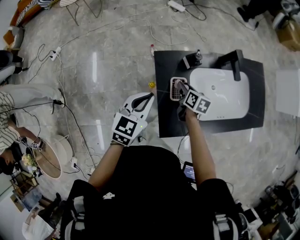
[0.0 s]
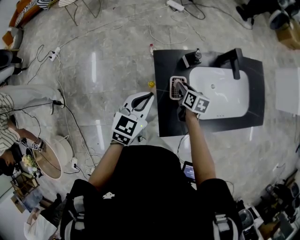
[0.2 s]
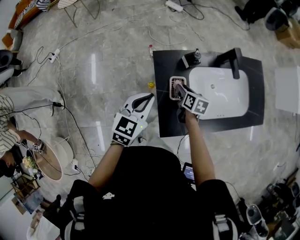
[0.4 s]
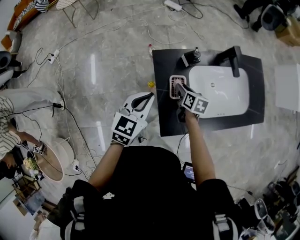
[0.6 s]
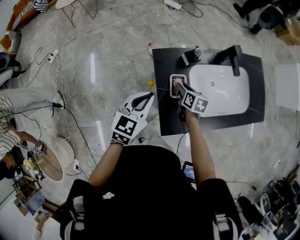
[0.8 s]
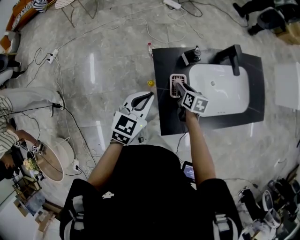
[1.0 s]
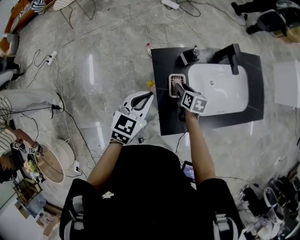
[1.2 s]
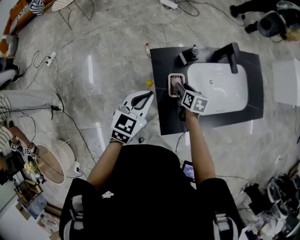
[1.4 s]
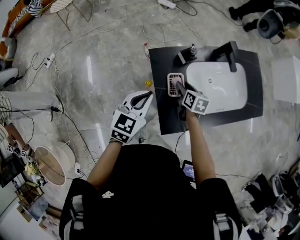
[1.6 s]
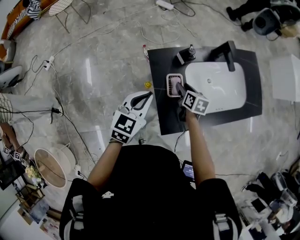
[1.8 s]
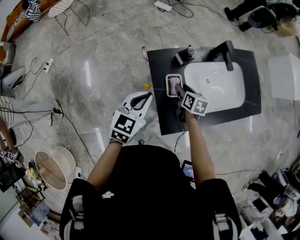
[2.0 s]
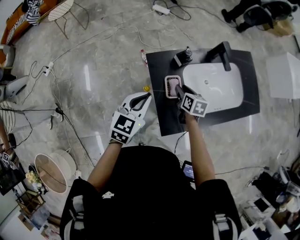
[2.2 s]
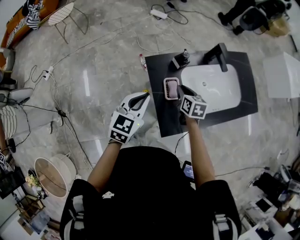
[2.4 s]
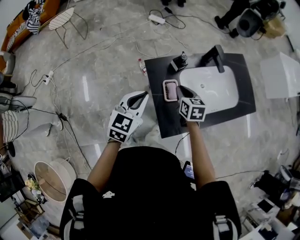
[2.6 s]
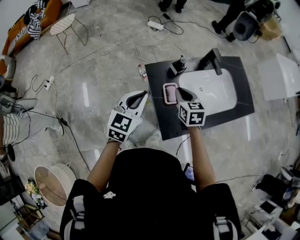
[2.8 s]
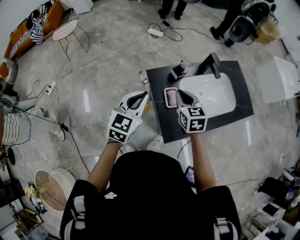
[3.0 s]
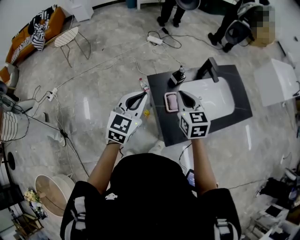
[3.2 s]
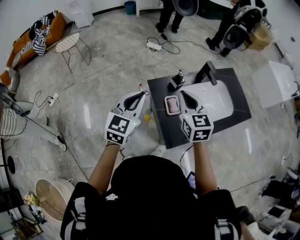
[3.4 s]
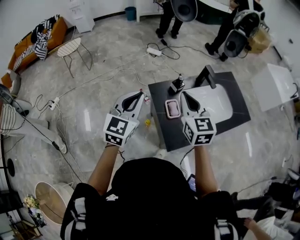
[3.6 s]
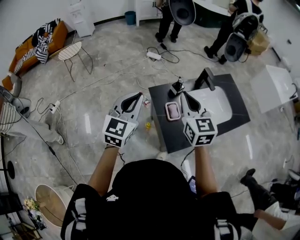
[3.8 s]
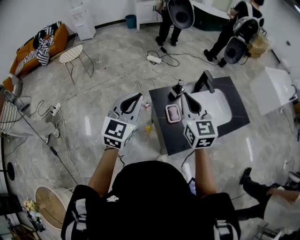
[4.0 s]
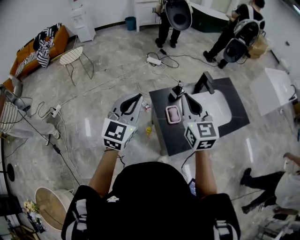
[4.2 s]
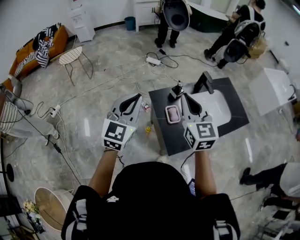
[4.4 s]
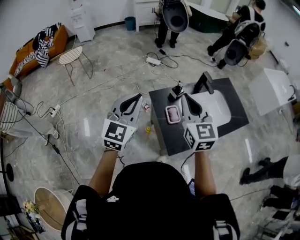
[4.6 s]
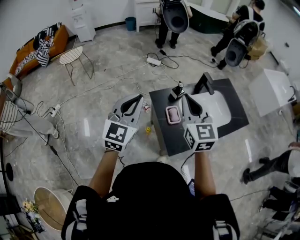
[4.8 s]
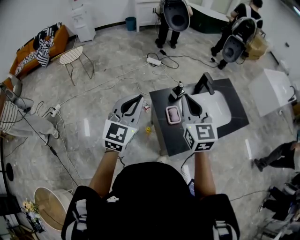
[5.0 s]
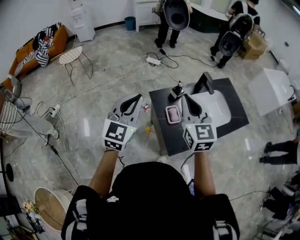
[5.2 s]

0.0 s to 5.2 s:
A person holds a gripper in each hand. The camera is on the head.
0.0 to 1.8 s: There are only small adjustments of the grippers.
1.8 to 3.4 s: The right gripper is displaced upward by about 30 cm, changes its angle by roughly 40 degrees, and closes its fingers, while the left gripper heads upward, covering about 15 cm.
3.4 to 5.2 s: Both grippers move upward, approximately 10 cm.

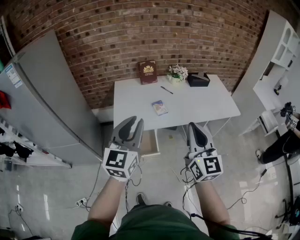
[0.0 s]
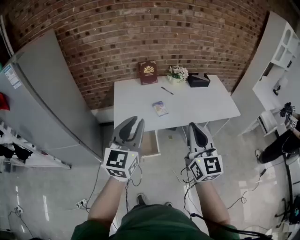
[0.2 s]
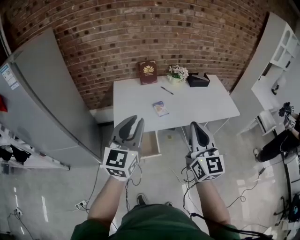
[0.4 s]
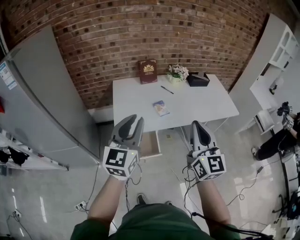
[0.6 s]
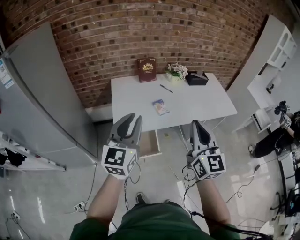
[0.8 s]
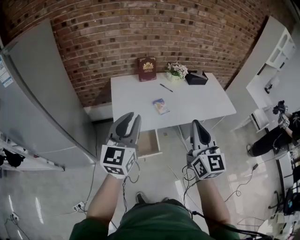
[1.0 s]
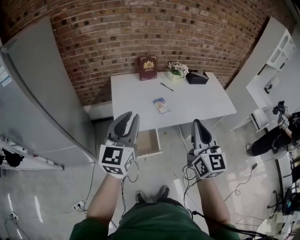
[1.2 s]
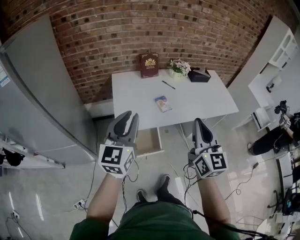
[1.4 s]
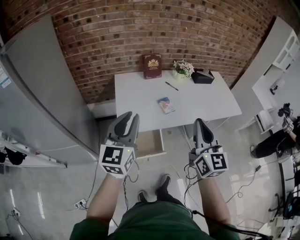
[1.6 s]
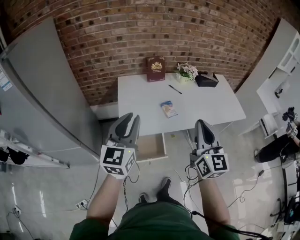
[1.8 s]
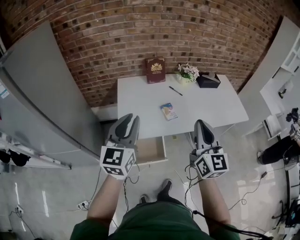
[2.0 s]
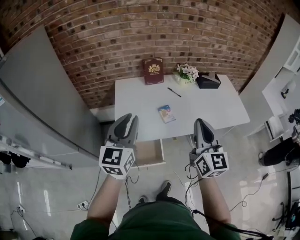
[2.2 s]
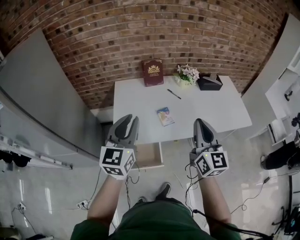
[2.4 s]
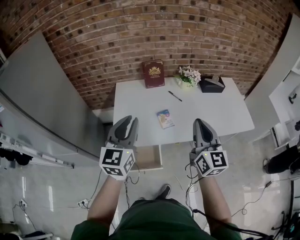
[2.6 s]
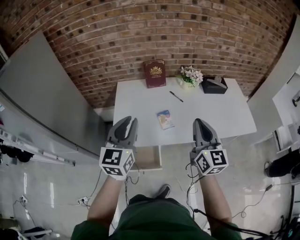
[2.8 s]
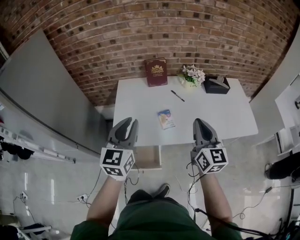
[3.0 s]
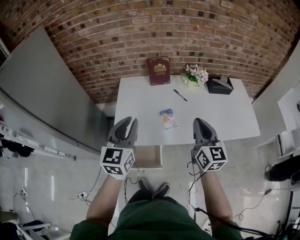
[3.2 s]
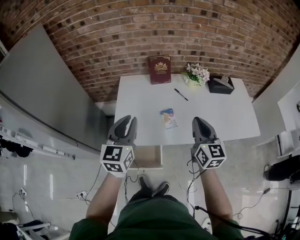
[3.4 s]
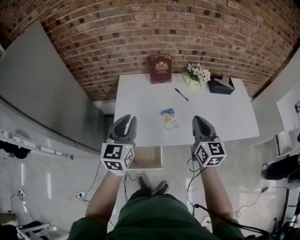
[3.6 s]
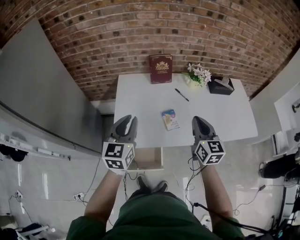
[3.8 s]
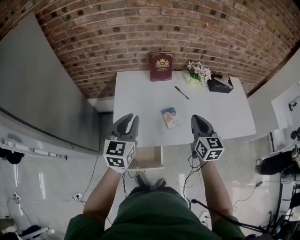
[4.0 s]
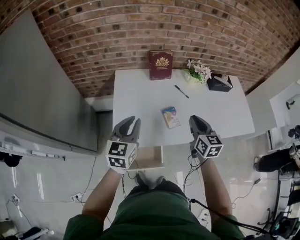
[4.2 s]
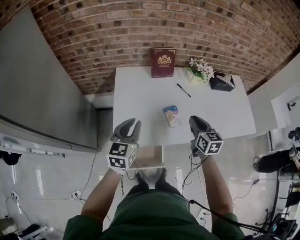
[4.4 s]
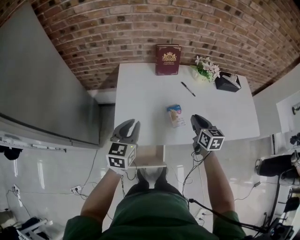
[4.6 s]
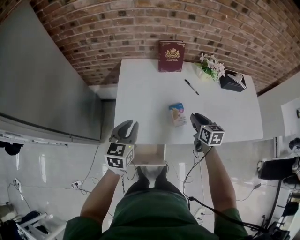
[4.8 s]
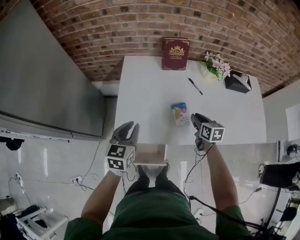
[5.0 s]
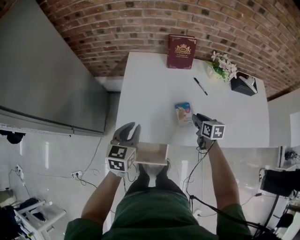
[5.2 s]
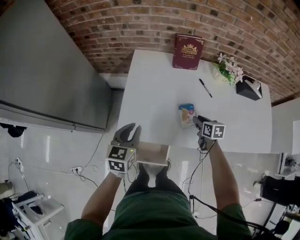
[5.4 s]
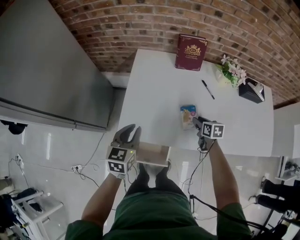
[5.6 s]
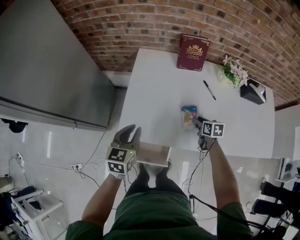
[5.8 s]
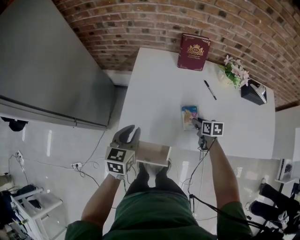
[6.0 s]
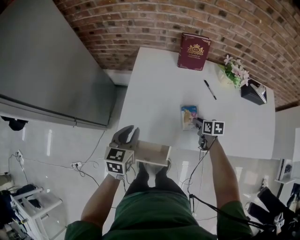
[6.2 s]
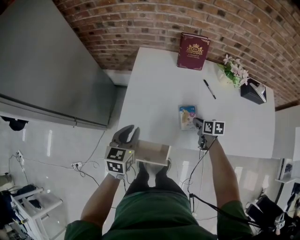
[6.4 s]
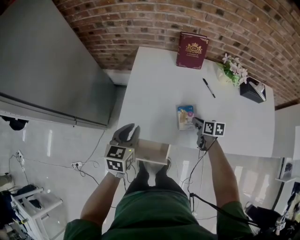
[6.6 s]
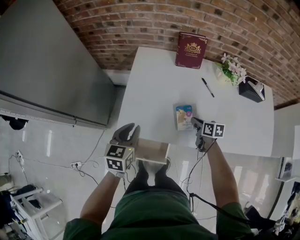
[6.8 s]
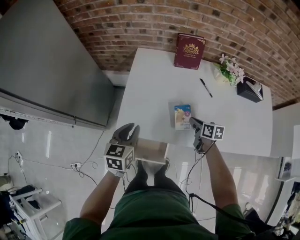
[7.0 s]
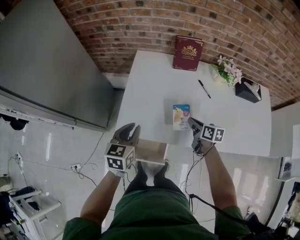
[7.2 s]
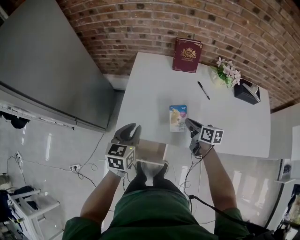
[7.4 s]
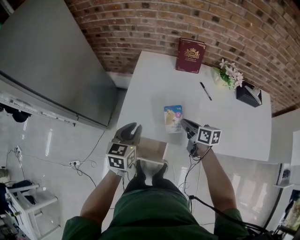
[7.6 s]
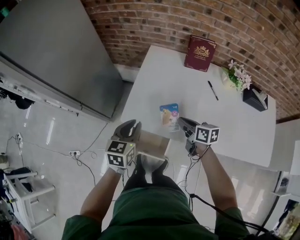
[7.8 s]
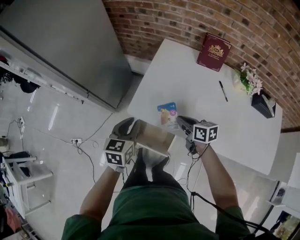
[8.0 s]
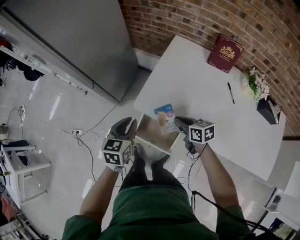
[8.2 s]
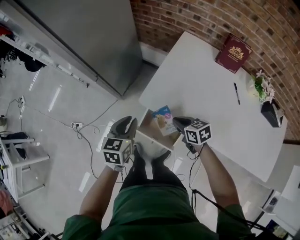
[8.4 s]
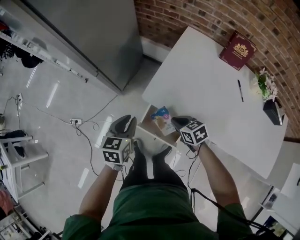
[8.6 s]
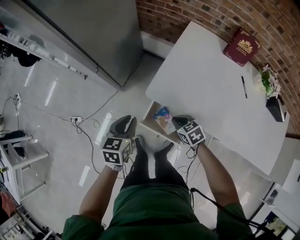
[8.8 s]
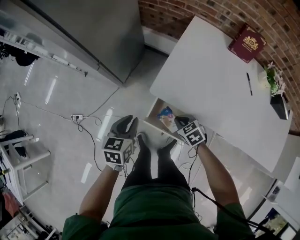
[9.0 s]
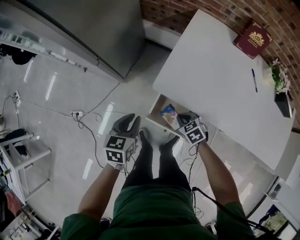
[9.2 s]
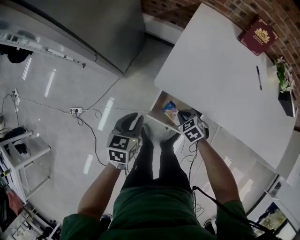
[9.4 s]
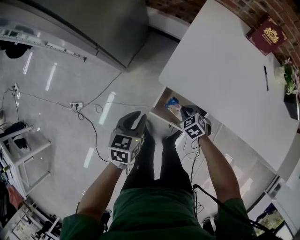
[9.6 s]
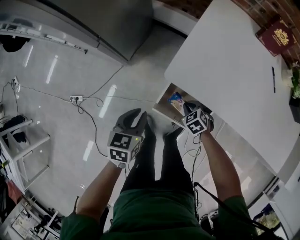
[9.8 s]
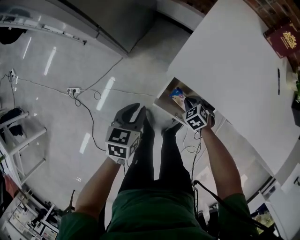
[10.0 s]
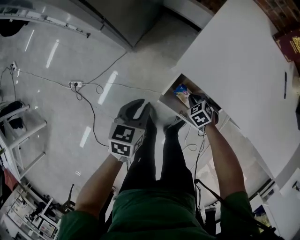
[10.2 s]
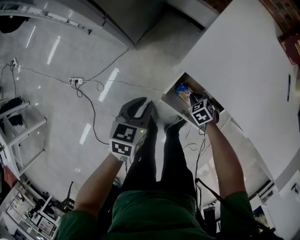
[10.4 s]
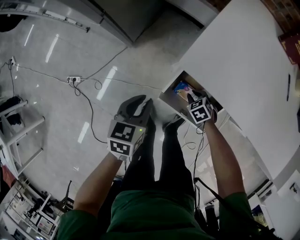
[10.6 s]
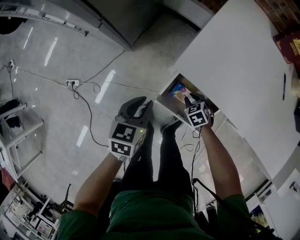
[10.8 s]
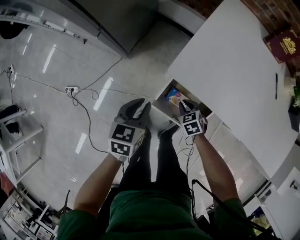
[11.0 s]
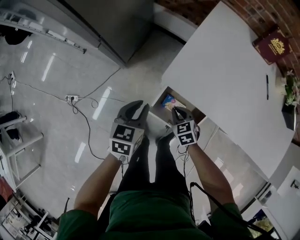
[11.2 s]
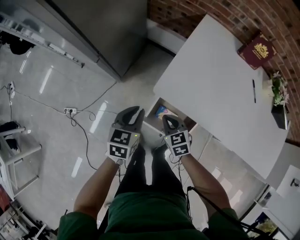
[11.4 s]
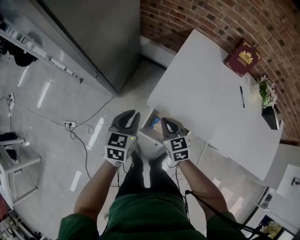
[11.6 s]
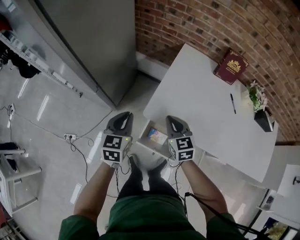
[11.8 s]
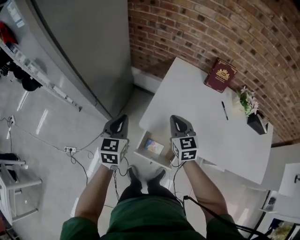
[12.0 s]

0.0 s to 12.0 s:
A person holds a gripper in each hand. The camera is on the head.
0.0 to 1.6 s: Both grippers move to the left and forward, some 10 cm.
1.6 to 3.0 s: The grippers both shift forward and to the right by about 20 cm.
3.0 to 4.4 s: The left gripper heads downward, to the left and forward, covering some 20 cm. Meanwhile the right gripper heads downward, forward and to the left, covering roughly 20 cm, and rotates roughly 30 degrees.
4.4 to 6.0 s: The right gripper moves downward, roughly 25 cm, rotates about 40 degrees, and opens up, while the left gripper goes some 10 cm downward.
6.0 to 7.6 s: The left gripper shifts by some 5 cm. The right gripper goes about 15 cm upward and to the left, swivels roughly 30 degrees, and closes up.
7.6 to 9.0 s: Both grippers move to the left and downward, about 25 cm. The right gripper tilts its fingers roughly 30 degrees downward. The left gripper swivels roughly 20 degrees.
9.0 to 10.4 s: The left gripper travels downward by roughly 15 cm. The right gripper heads downward, covering roughly 20 cm.
10.4 to 12.0 s: The right gripper shifts roughly 40 cm upward, and points its fingers approximately 50 degrees further upward. Meanwhile the left gripper is displaced upward and forward by approximately 30 cm, and rotates approximately 30 degrees.

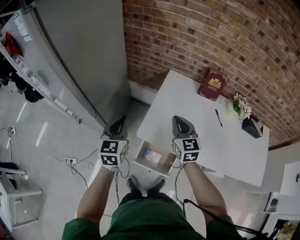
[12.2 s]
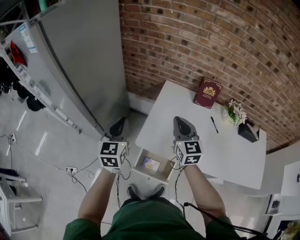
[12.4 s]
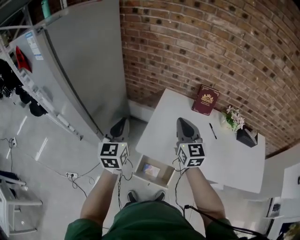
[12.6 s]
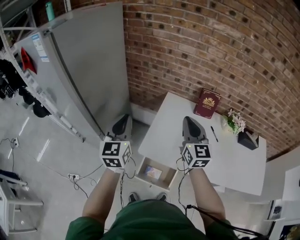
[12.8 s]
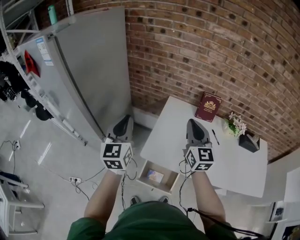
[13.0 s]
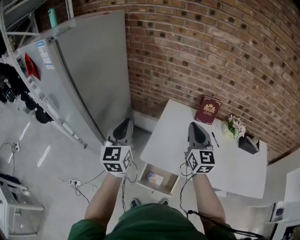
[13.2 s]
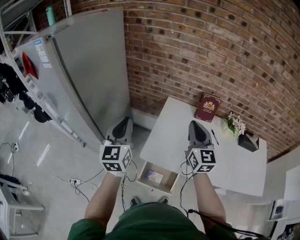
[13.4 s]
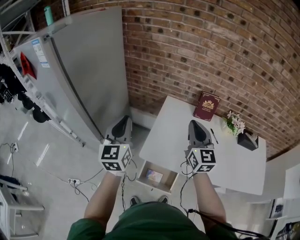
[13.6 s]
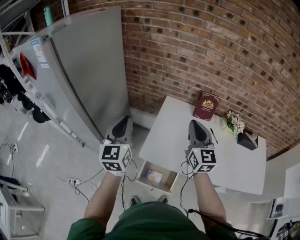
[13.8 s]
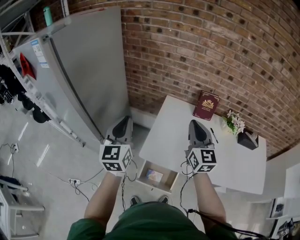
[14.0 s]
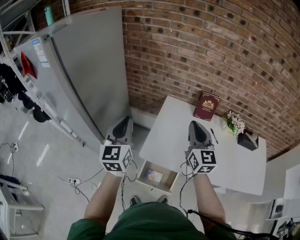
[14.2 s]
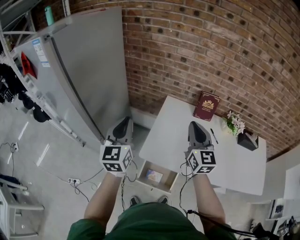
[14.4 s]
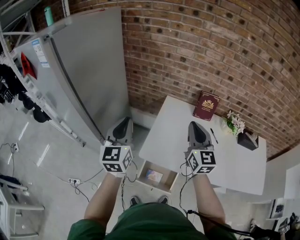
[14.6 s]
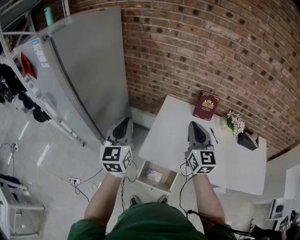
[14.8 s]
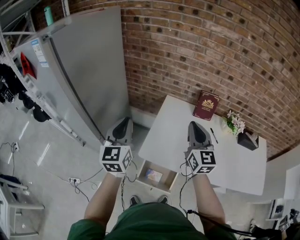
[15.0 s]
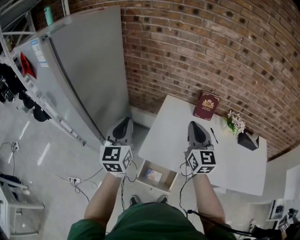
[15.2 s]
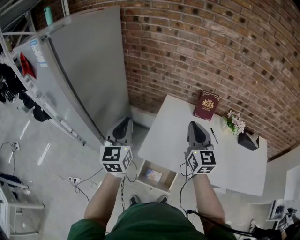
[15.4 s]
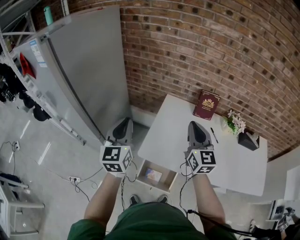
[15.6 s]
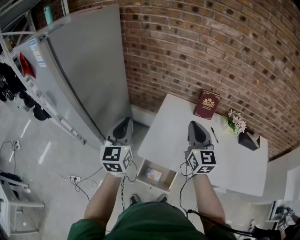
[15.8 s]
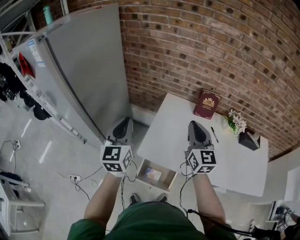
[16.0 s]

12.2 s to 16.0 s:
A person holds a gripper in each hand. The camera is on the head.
12.2 to 13.4 s: Both grippers travel together upward, roughly 15 cm. The right gripper rotates about 20 degrees.
13.4 to 16.0 s: The grippers make only small movements.

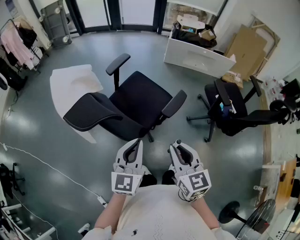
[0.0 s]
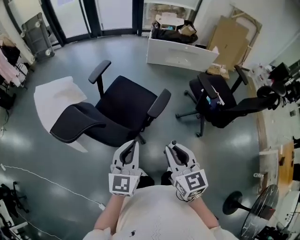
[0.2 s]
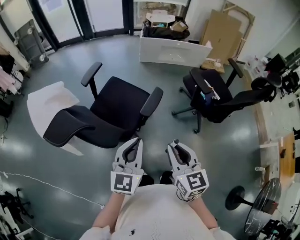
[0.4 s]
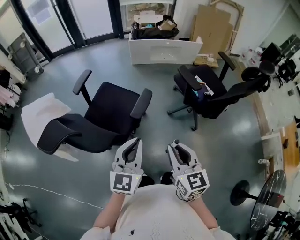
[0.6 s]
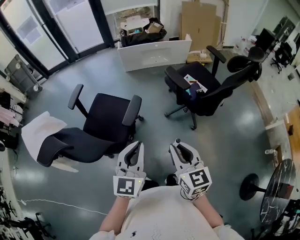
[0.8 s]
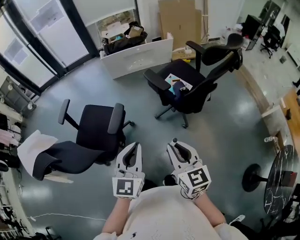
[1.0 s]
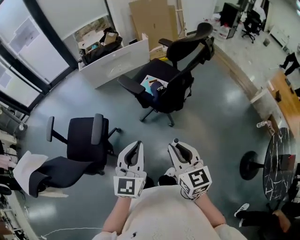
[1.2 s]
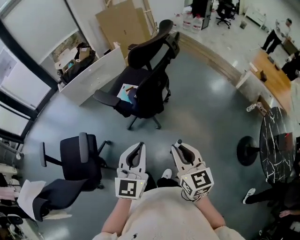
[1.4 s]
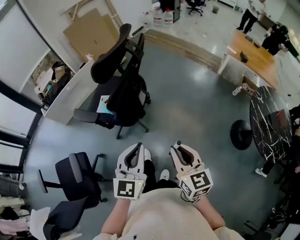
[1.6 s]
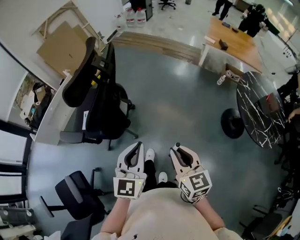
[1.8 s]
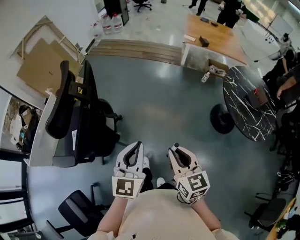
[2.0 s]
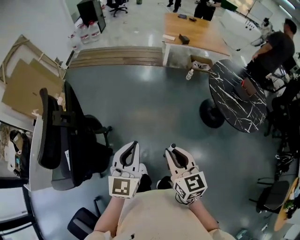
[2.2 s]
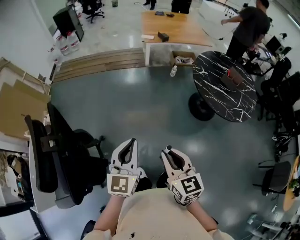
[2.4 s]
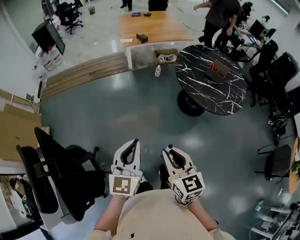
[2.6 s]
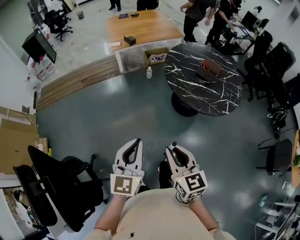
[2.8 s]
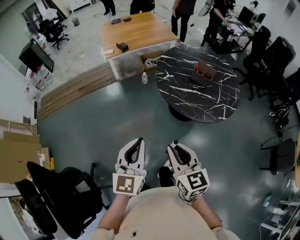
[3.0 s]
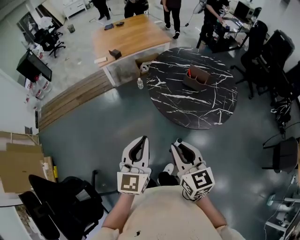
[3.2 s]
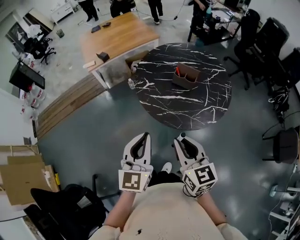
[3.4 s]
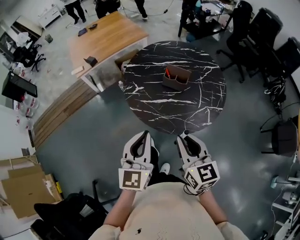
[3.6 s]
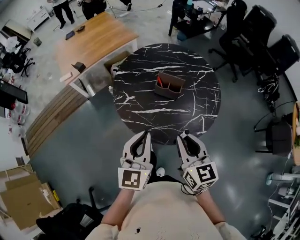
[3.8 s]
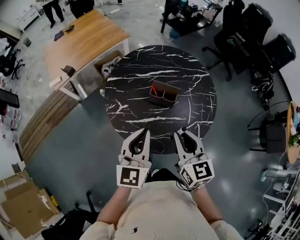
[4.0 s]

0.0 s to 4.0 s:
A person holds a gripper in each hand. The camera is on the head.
0.0 to 1.4 s: The pair of grippers is taken about 60 cm. The right gripper changes its angle by approximately 40 degrees. Meanwhile the left gripper changes its angle by approximately 40 degrees.
1.4 to 2.6 s: The left gripper changes place by some 50 cm, and turns by approximately 60 degrees, while the right gripper shifts by roughly 40 cm, and rotates roughly 60 degrees.
2.6 to 4.0 s: Both grippers are carried approximately 70 cm. The right gripper swivels about 30 degrees. The left gripper turns by about 30 degrees.
